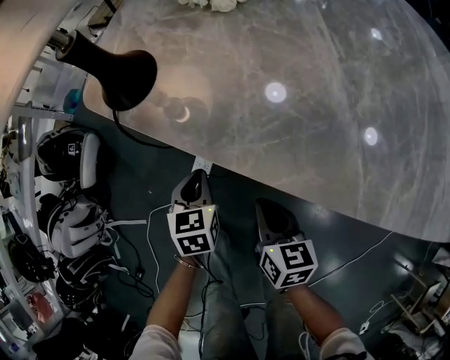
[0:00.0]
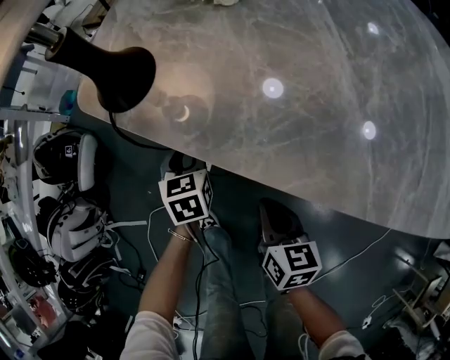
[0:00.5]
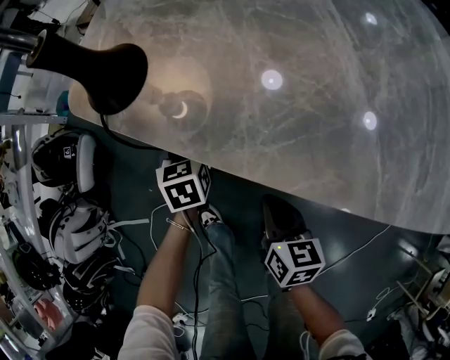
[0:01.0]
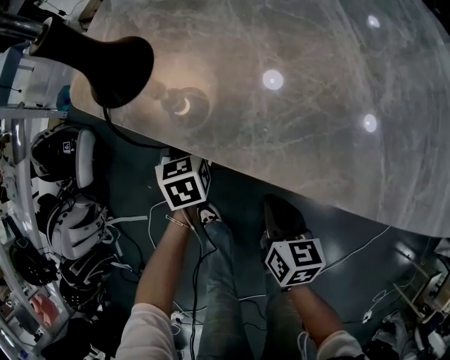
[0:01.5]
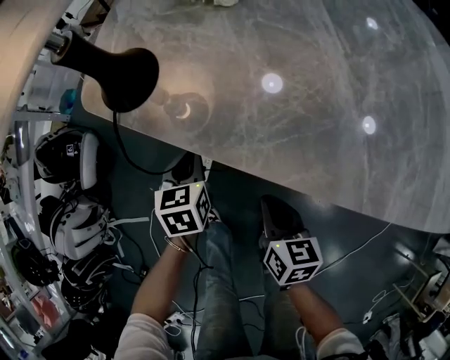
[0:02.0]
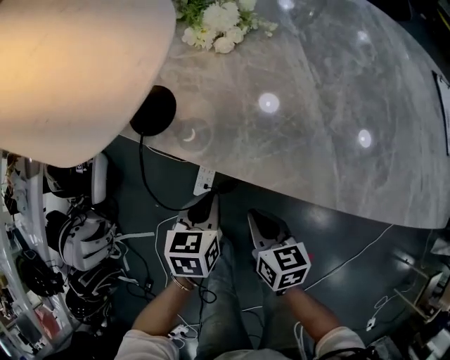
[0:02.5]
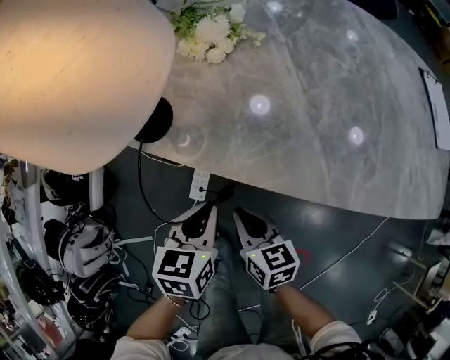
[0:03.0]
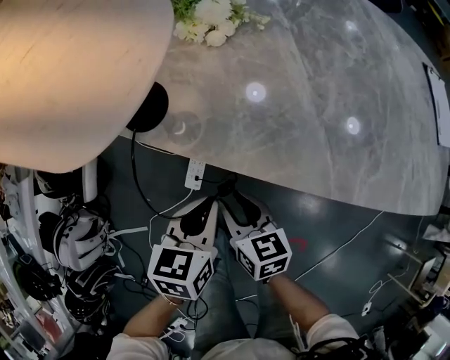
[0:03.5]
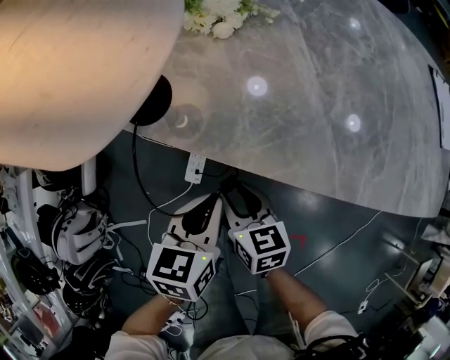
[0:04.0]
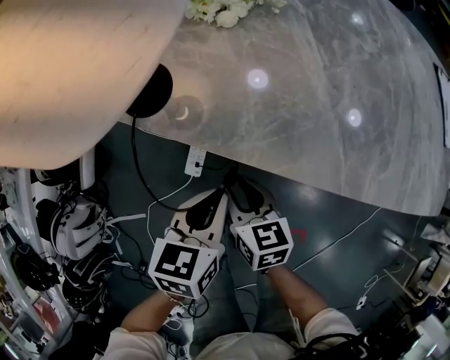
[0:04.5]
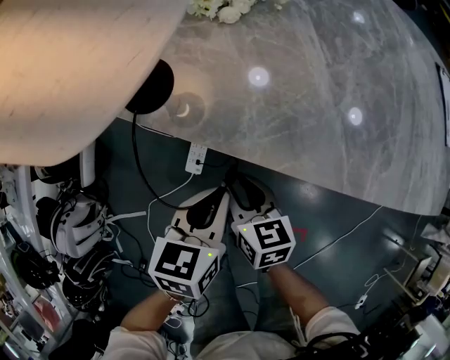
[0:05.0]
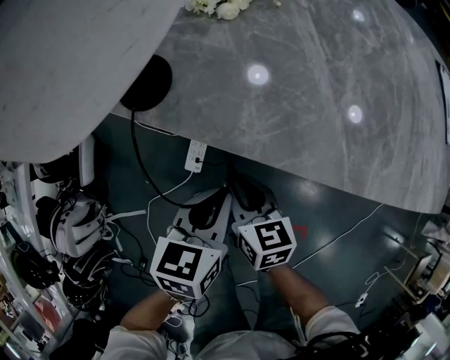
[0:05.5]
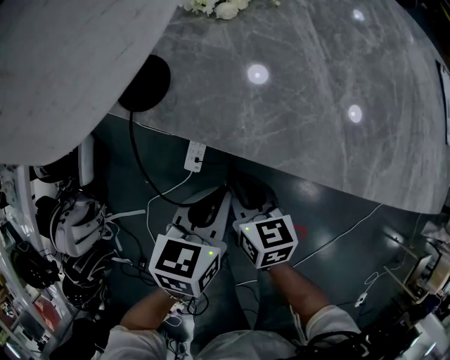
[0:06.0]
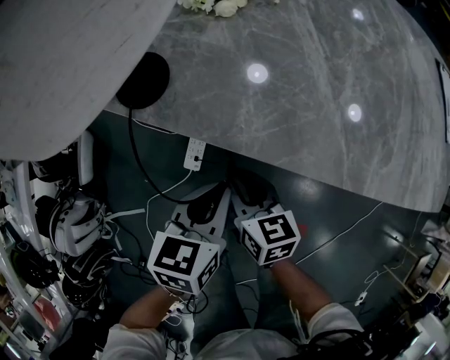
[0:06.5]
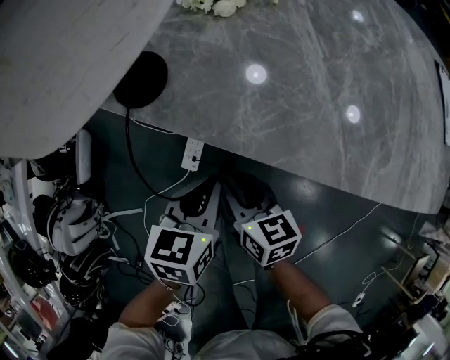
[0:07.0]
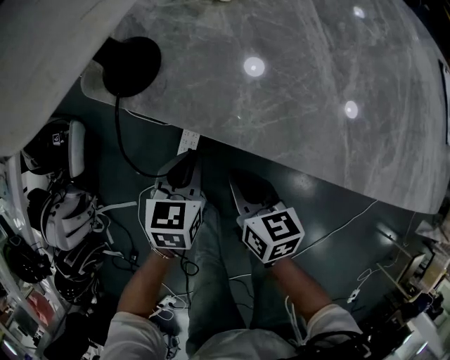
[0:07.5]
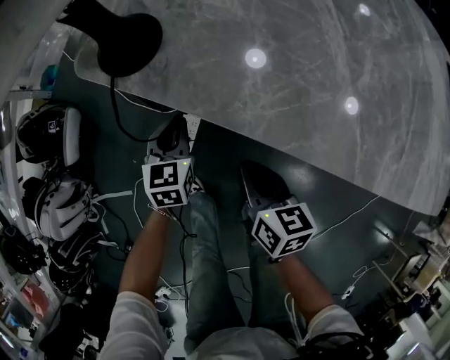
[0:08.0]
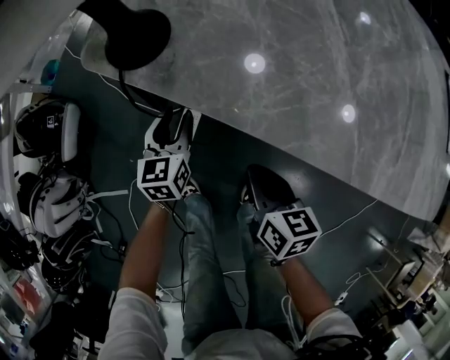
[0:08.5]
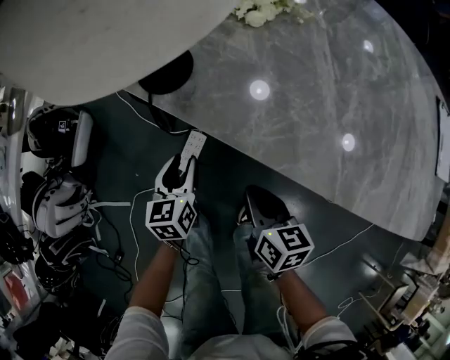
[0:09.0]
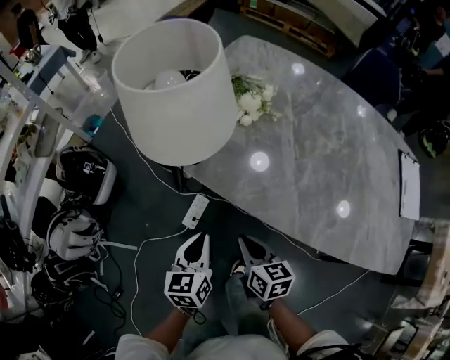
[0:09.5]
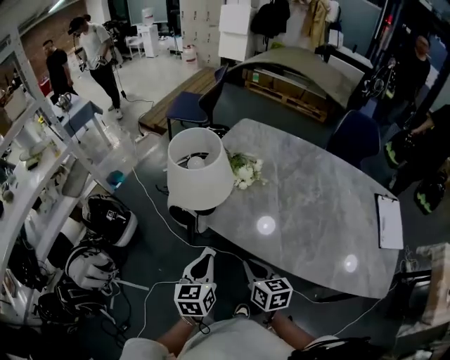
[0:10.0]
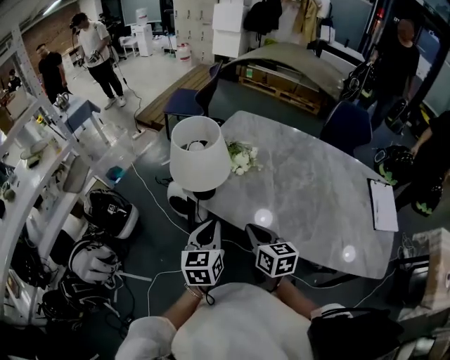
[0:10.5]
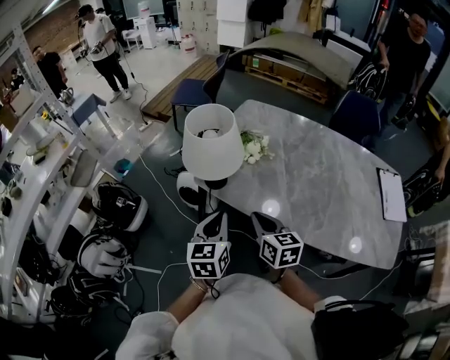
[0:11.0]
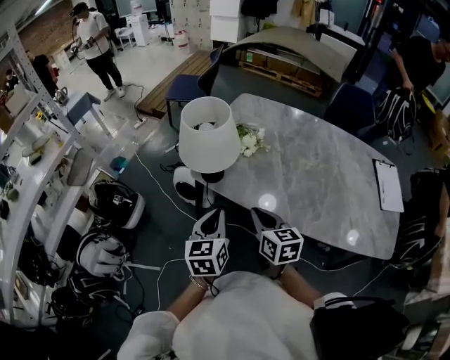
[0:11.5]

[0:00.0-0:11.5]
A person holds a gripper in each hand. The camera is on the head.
0:00.0 to 0:02.0: The left gripper opens, then closes once more.
0:02.0 to 0:04.0: The left gripper is displaced upward and backward by some 20 cm, and changes its angle by some 20 degrees, while the right gripper moves to the left and upward, about 10 cm, and opens.
0:04.0 to 0:06.0: The grippers stay close to where they were, moving slightly.
0:06.0 to 0:07.5: The left gripper heads downward, covering roughly 10 cm.
0:07.5 to 0:09.5: The left gripper travels upward and backward by some 15 cm, swivels roughly 30 degrees, and opens, then closes again. Meanwhile the right gripper is displaced upward by about 10 cm.
0:09.5 to 0:11.5: Both grippers move upward, roughly 20 cm.

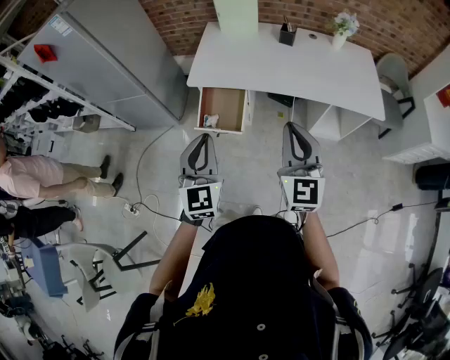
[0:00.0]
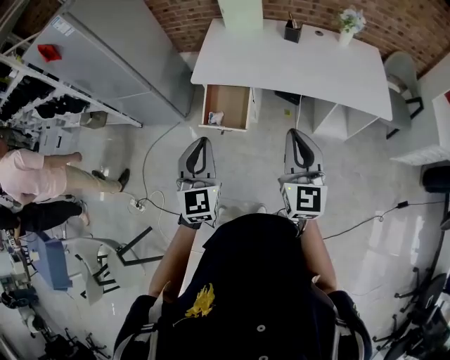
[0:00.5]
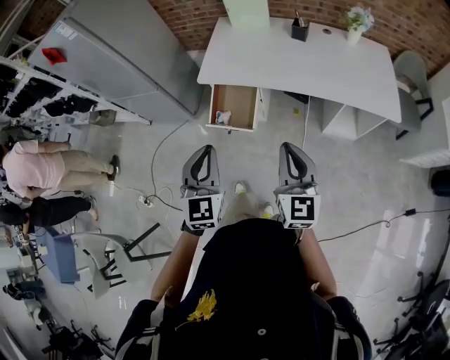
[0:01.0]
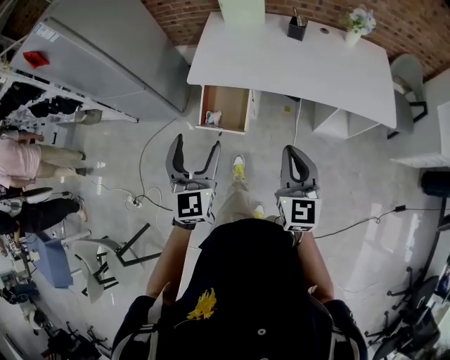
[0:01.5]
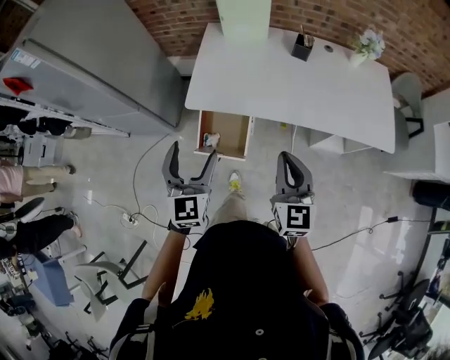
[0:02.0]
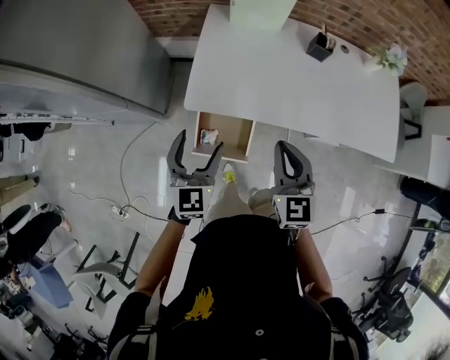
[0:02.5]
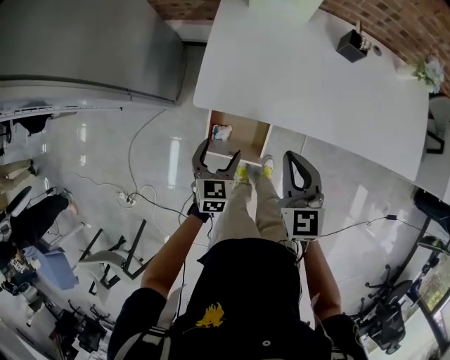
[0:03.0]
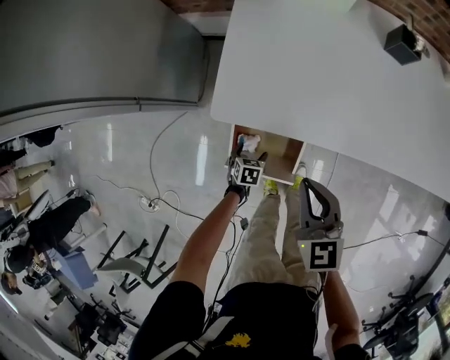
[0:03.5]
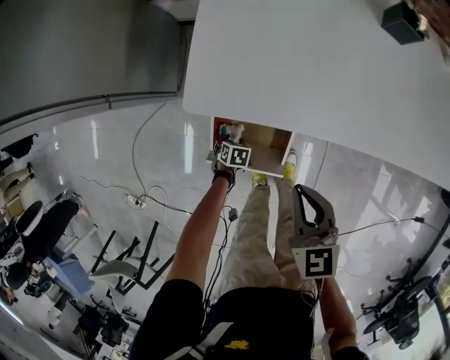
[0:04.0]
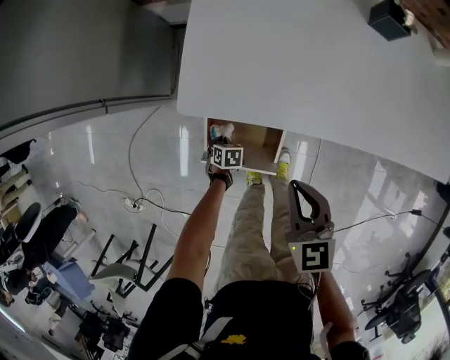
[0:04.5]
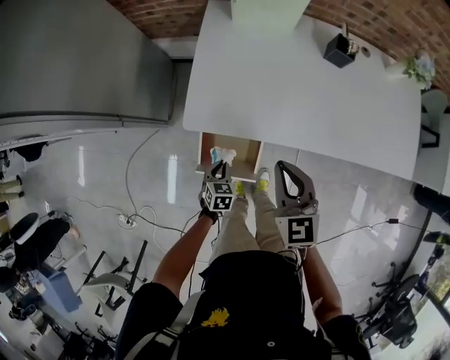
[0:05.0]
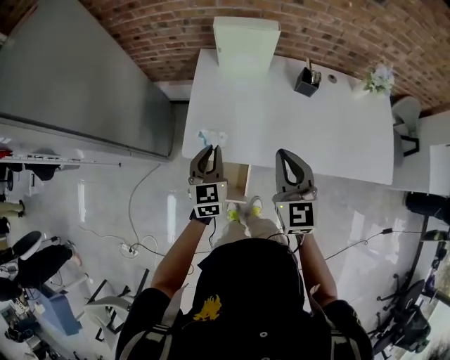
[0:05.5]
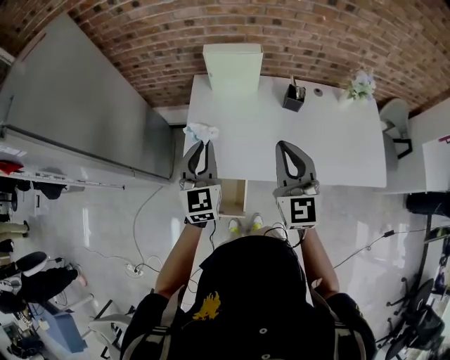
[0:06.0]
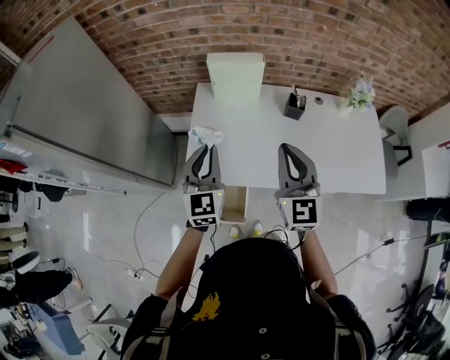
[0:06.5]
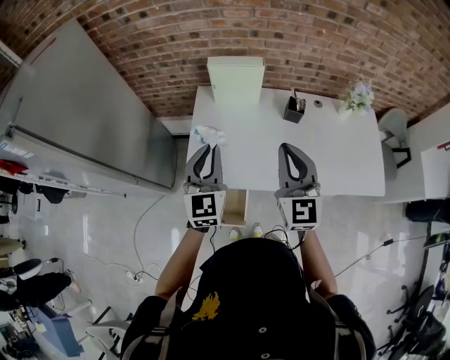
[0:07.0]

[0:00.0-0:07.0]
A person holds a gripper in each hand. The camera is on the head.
0:00.0 to 0:02.0: The right gripper moves forward and downward, roughly 20 cm. Meanwhile the left gripper moves forward, about 20 cm, and opens up.
0:02.0 to 0:03.5: The left gripper travels downward by about 60 cm, and tips its fingers downward by some 60 degrees. Meanwhile the right gripper goes some 35 cm downward, forward and to the left, and swivels approximately 20 degrees.
0:03.5 to 0:05.0: The left gripper moves upward, about 20 cm, and closes its fingers; the right gripper moves upward, some 10 cm.
0:05.0 to 0:07.0: The right gripper is displaced upward by some 25 cm, and changes its angle by about 30 degrees. The left gripper heads upward, covering approximately 50 cm, and tilts its fingers some 50 degrees upward.

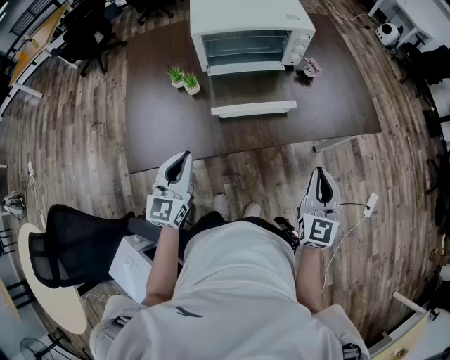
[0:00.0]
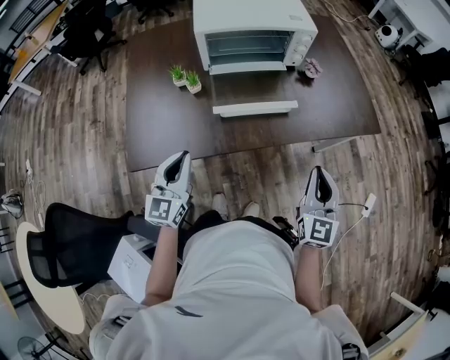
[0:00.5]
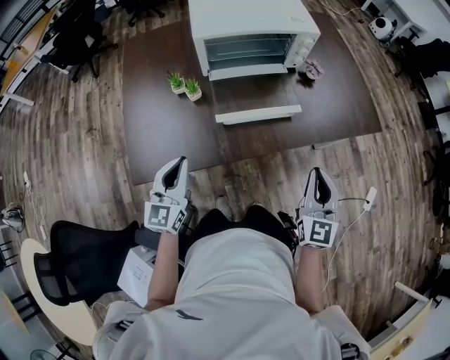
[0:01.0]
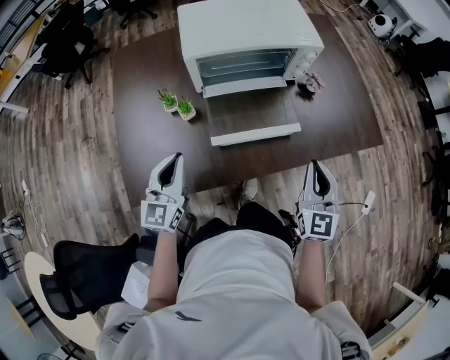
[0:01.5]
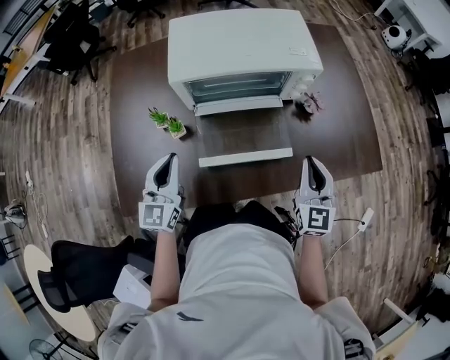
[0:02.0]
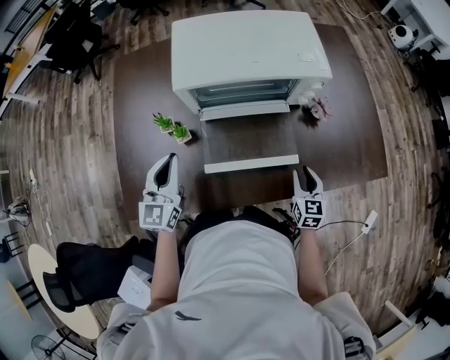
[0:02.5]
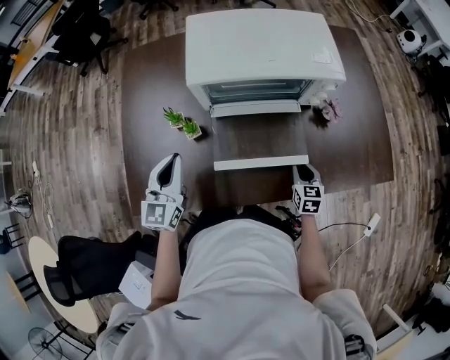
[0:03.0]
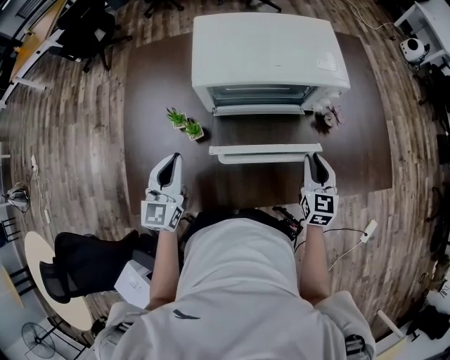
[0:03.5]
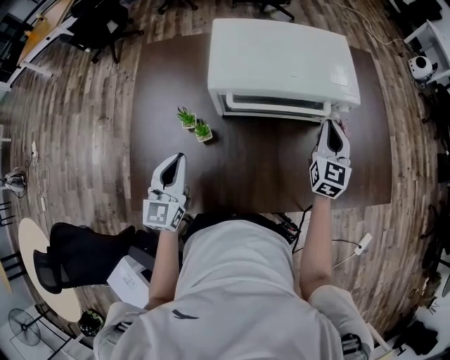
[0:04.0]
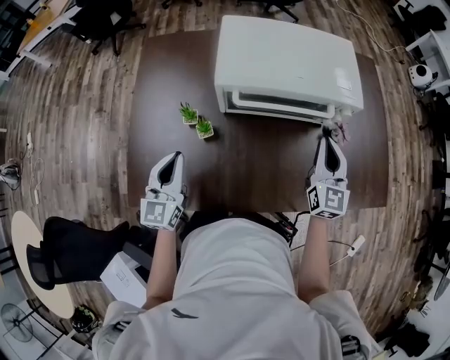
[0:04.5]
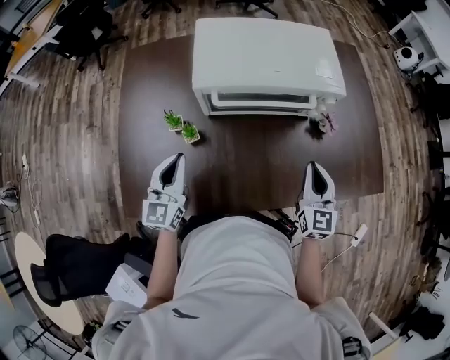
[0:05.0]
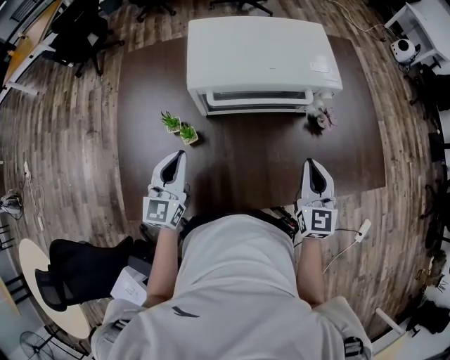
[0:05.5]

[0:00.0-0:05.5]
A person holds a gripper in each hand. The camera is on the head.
0:00.0 to 0:02.0: The two grippers go some 20 cm forward.
0:02.0 to 0:03.5: The right gripper moves downward and forward, roughly 10 cm.
0:03.5 to 0:05.5: The right gripper travels upward by about 5 cm, and goes forward and returns, roughly 10 cm each way.

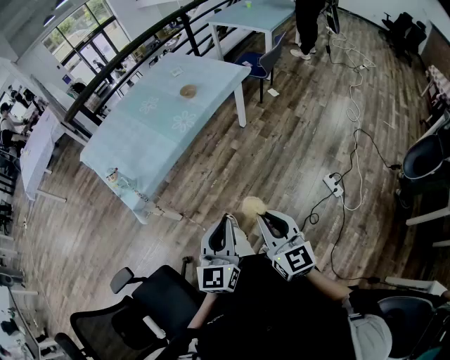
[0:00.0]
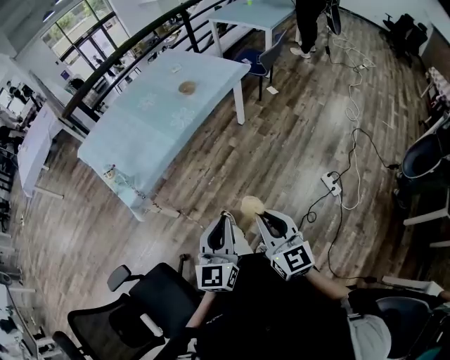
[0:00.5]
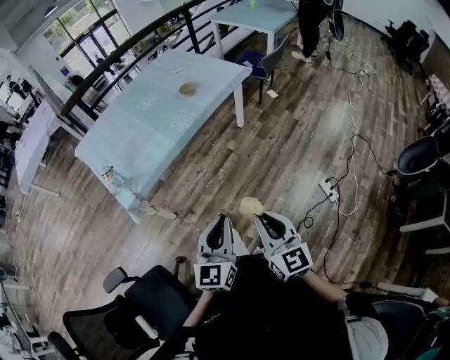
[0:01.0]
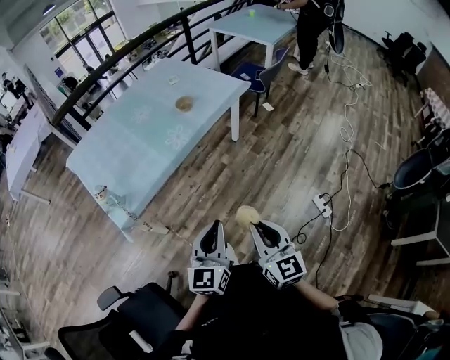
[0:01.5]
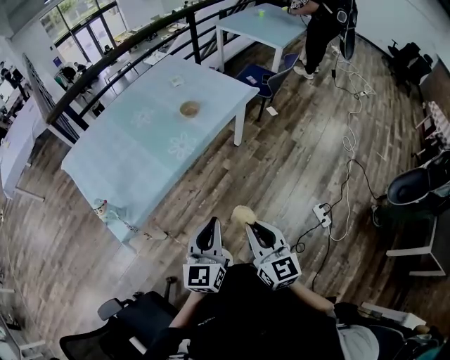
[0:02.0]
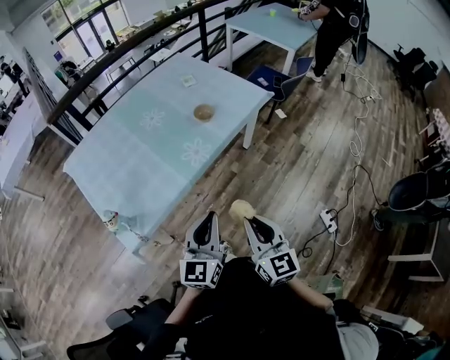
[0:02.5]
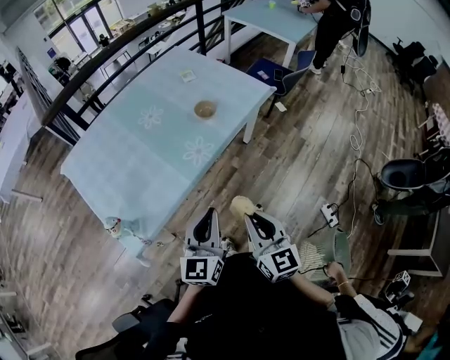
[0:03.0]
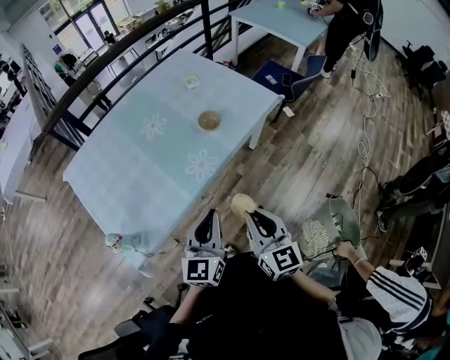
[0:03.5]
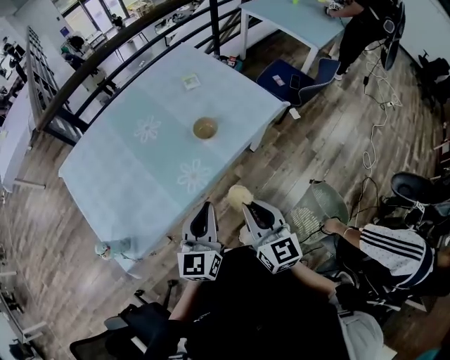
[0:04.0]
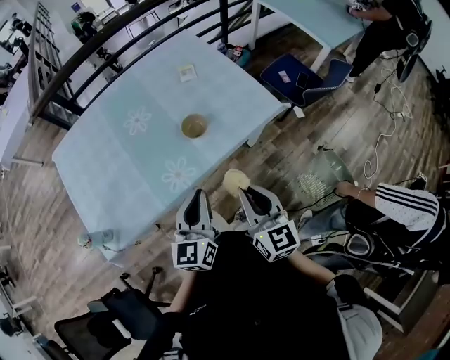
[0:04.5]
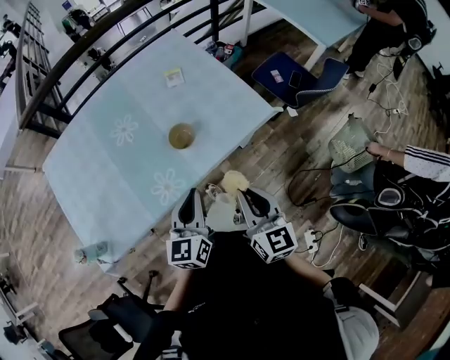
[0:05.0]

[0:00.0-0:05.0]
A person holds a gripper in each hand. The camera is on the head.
0:00.0 to 0:02.5: The grippers both shift forward by about 30 cm.
0:02.5 to 0:05.0: The grippers both shift forward and to the right by some 40 cm. The left gripper turns by some 20 degrees.
